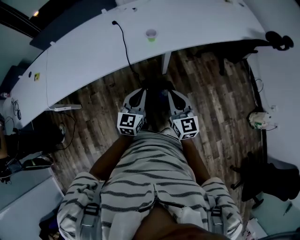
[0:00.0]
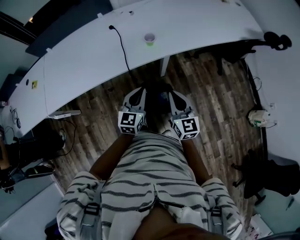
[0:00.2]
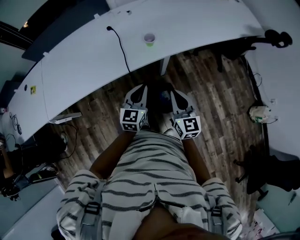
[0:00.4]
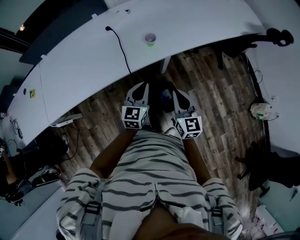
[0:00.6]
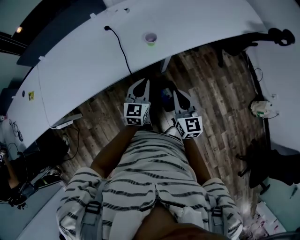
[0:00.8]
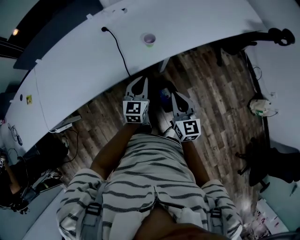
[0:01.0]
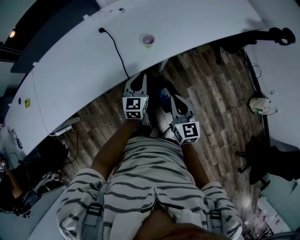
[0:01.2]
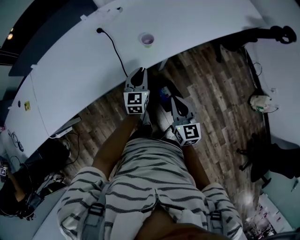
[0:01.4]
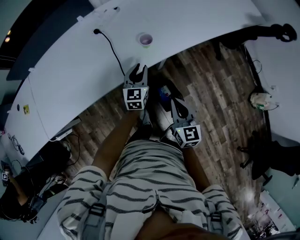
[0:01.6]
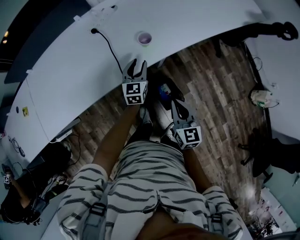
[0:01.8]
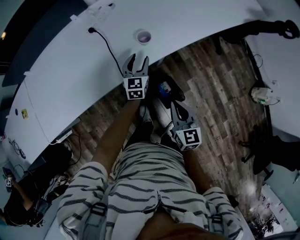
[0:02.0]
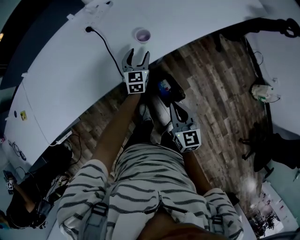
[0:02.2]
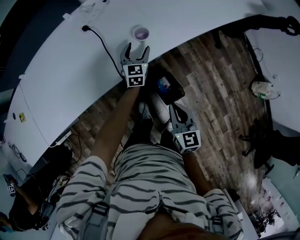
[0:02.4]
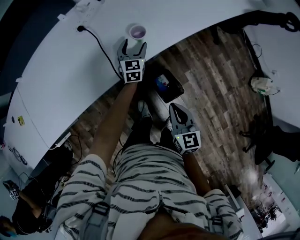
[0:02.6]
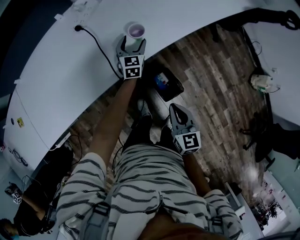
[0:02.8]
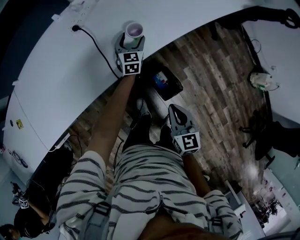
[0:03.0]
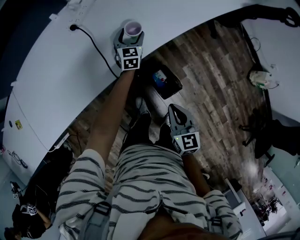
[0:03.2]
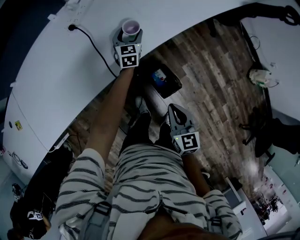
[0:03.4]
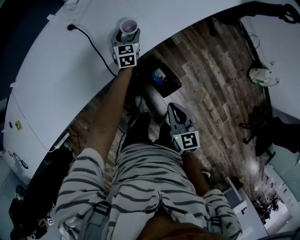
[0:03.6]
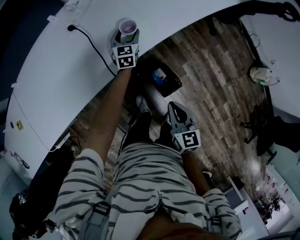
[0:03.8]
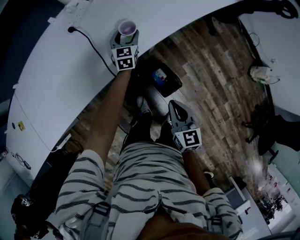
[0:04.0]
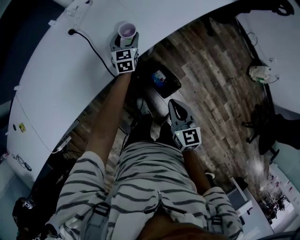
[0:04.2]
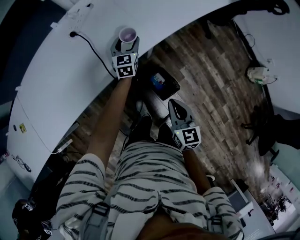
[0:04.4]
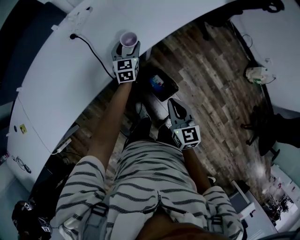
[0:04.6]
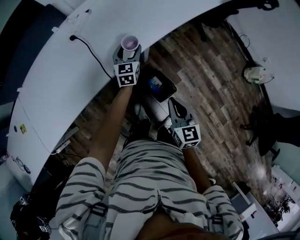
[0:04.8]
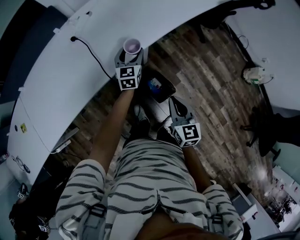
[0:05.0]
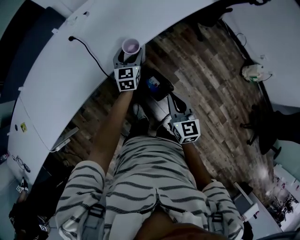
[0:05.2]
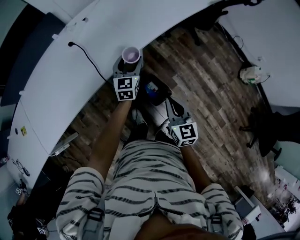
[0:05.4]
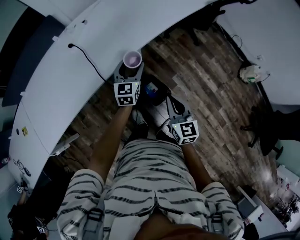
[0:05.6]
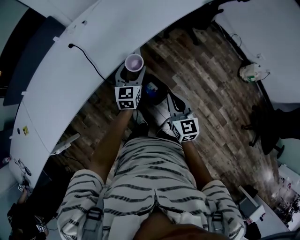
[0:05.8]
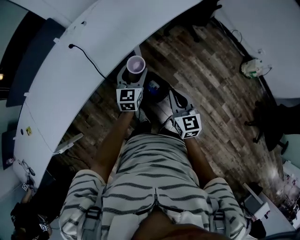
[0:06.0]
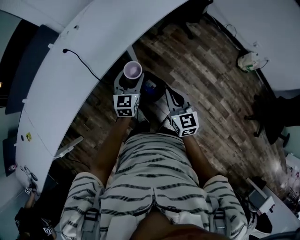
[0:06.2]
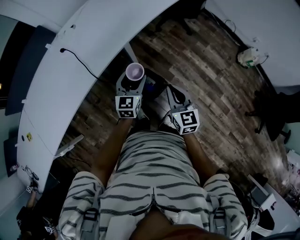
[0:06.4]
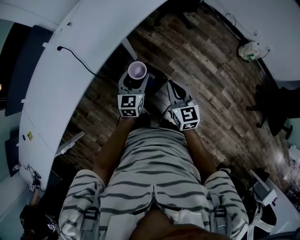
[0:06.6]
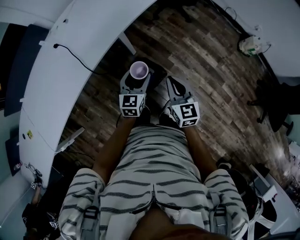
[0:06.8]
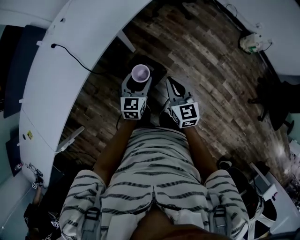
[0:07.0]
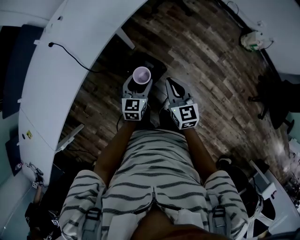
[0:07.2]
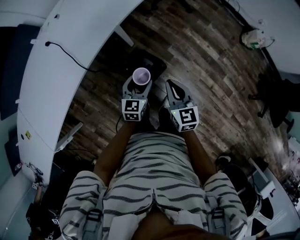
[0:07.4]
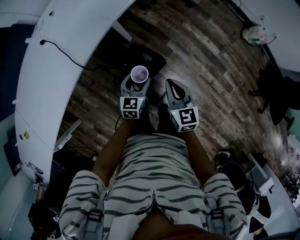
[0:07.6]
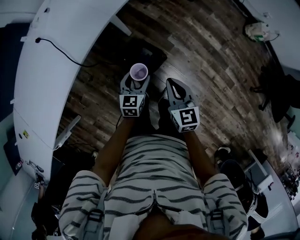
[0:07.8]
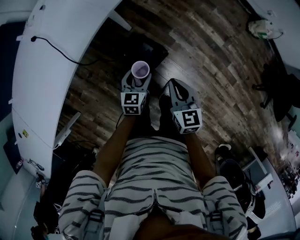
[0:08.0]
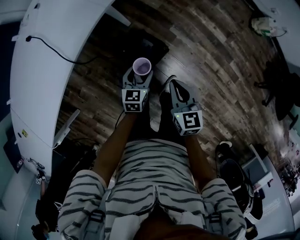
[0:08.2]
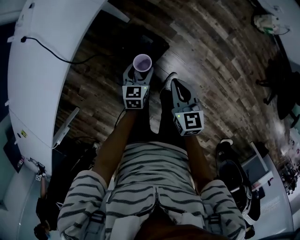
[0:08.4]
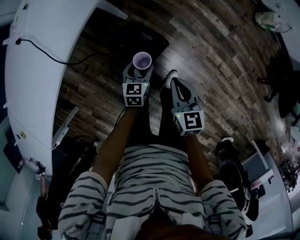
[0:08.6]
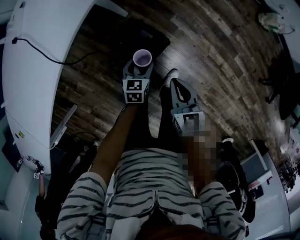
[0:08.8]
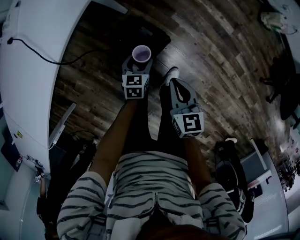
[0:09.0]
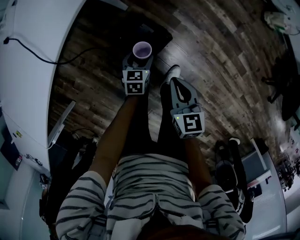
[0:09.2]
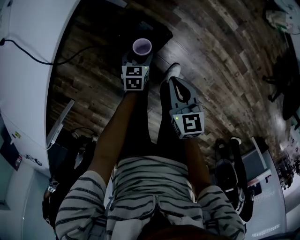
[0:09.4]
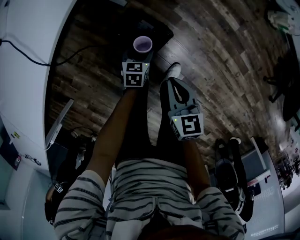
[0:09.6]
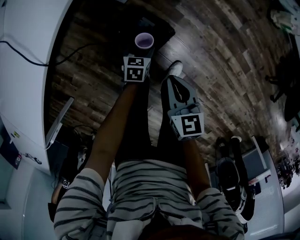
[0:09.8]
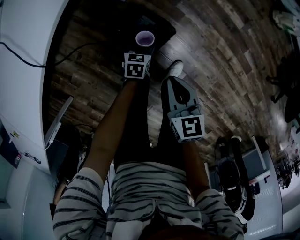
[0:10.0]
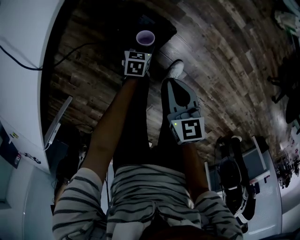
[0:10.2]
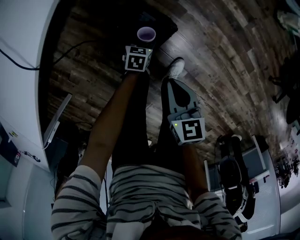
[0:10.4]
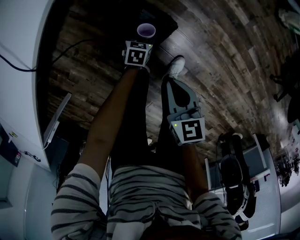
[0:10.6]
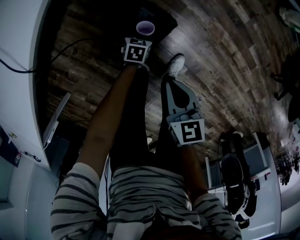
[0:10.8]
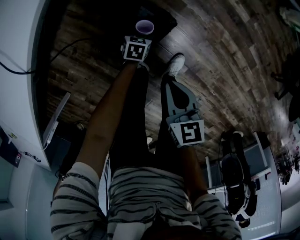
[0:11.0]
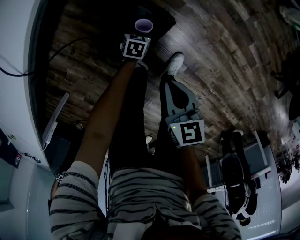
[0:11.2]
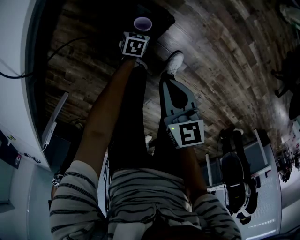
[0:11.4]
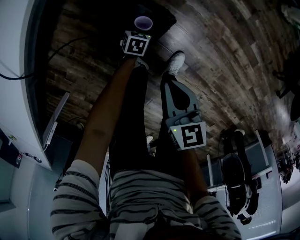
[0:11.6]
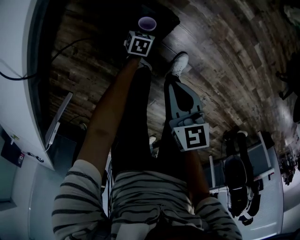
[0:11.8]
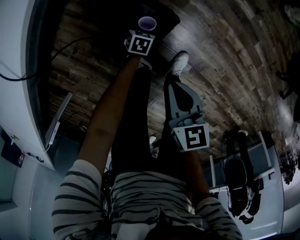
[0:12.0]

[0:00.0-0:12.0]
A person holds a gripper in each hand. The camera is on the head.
0:00.0 to 0:01.6: The right gripper moves forward and downward, about 10 cm. Meanwhile the left gripper shifts approximately 25 cm forward.
0:01.6 to 0:03.0: The left gripper is displaced forward and downward by roughly 20 cm, and opens up. Meanwhile the right gripper ends up some 5 cm from where it was.
0:03.0 to 0:04.4: The left gripper heads upward, covering approximately 5 cm.
0:04.4 to 0:06.0: The left gripper goes approximately 25 cm backward, to the right and upward; the right gripper goes some 10 cm to the right, upward and backward.
0:06.0 to 0:07.6: The left gripper is displaced downward, backward and to the right by approximately 20 cm, and turns by approximately 20 degrees, while the right gripper shifts some 10 cm downward.
0:07.6 to 0:09.0: The grippers both shift downward by about 15 cm.
0:09.0 to 0:10.4: The left gripper is displaced downward by some 15 cm, while the right gripper shifts roughly 10 cm downward.
0:10.4 to 0:12.0: The left gripper is displaced downward by roughly 10 cm.

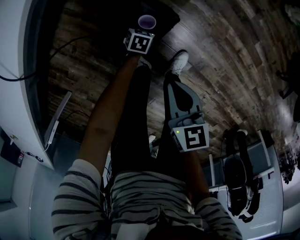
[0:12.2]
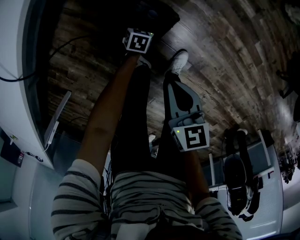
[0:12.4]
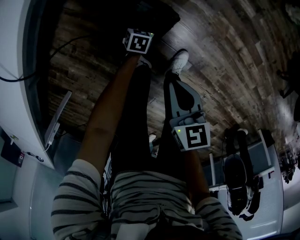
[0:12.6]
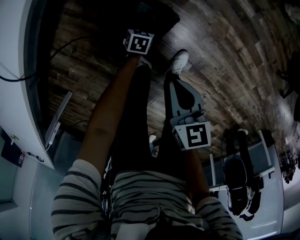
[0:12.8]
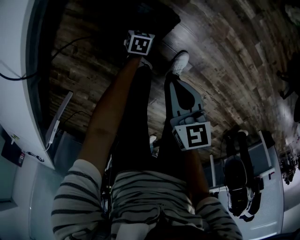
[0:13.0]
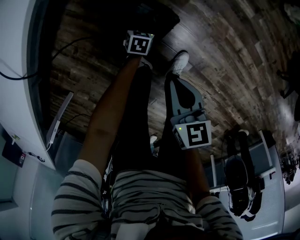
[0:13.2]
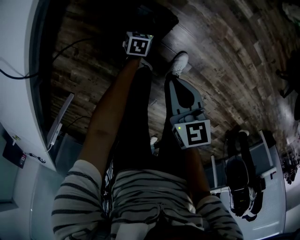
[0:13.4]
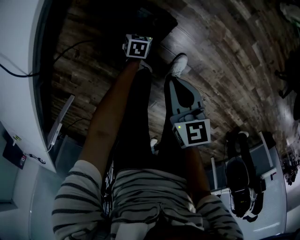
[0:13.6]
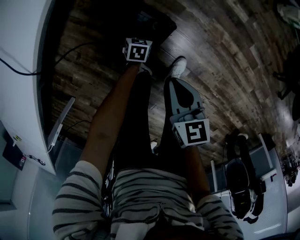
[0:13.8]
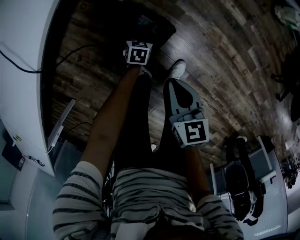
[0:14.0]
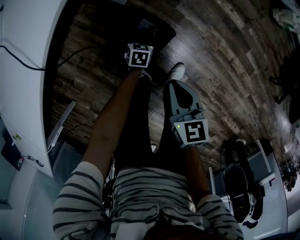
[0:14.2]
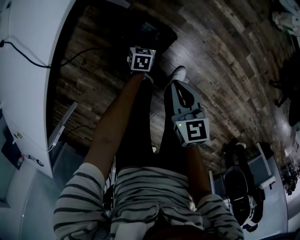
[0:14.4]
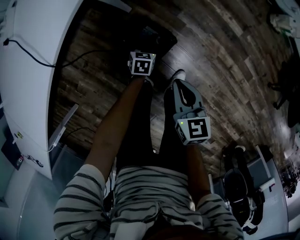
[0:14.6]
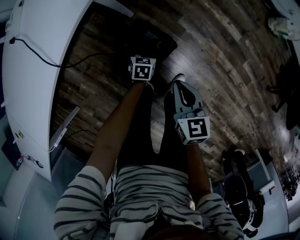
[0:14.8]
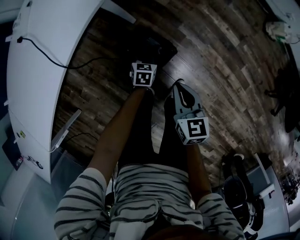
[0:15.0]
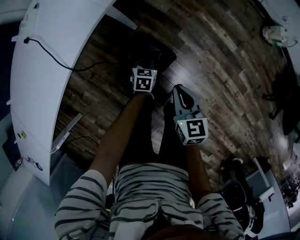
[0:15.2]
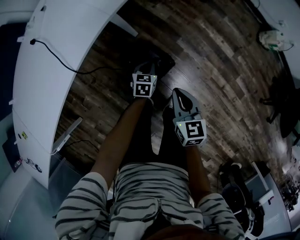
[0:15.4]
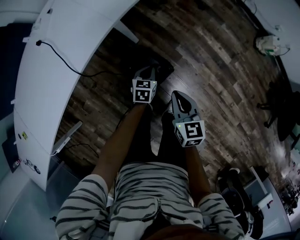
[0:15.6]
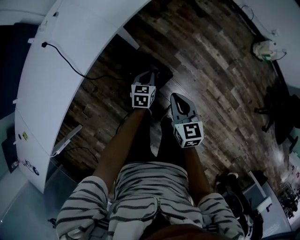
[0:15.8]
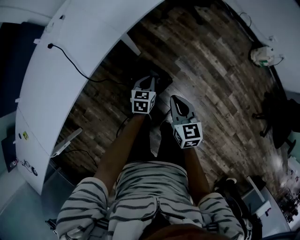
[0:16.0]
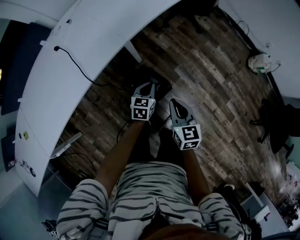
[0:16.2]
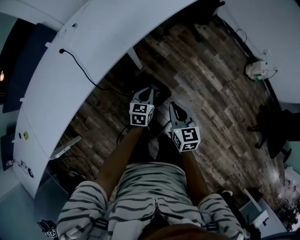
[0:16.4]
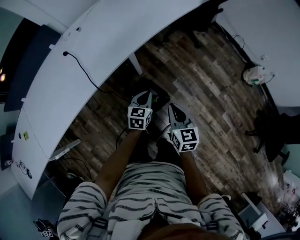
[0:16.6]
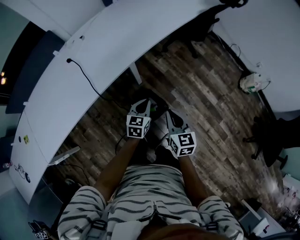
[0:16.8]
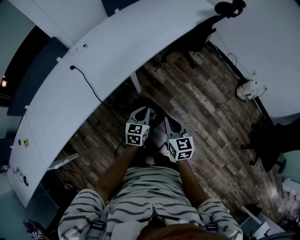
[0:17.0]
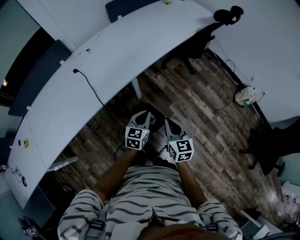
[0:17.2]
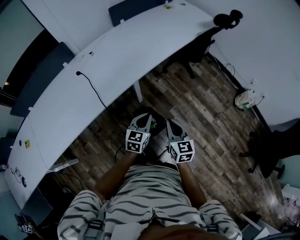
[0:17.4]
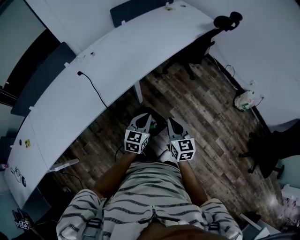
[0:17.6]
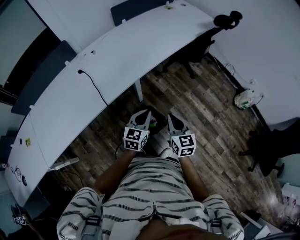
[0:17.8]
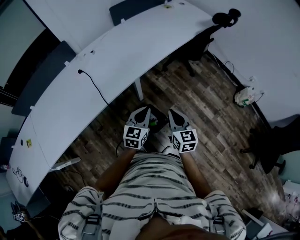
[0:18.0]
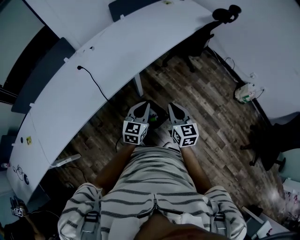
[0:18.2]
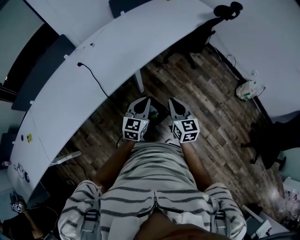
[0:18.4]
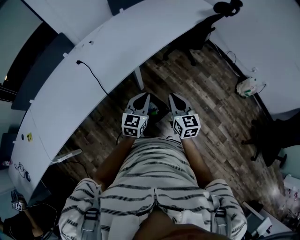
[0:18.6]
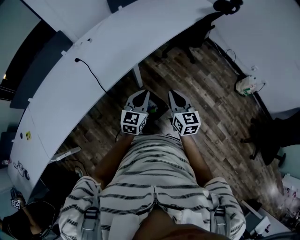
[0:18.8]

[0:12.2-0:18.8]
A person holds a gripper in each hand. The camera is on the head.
0:12.2 to 0:13.8: The left gripper is displaced upward by some 5 cm, and closes.
0:13.8 to 0:15.4: The left gripper travels upward by roughly 20 cm, and closes its fingers. The right gripper travels upward by some 10 cm.
0:15.4 to 0:17.2: The right gripper travels upward by approximately 15 cm. The left gripper is displaced upward by some 30 cm, and changes its angle by approximately 30 degrees.
0:17.2 to 0:18.8: The left gripper shifts some 10 cm upward. Meanwhile the right gripper ends up approximately 5 cm from where it was.

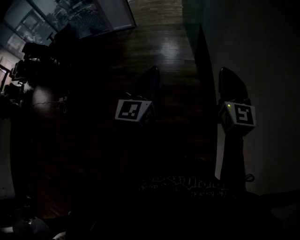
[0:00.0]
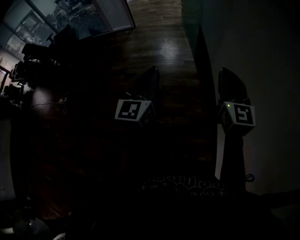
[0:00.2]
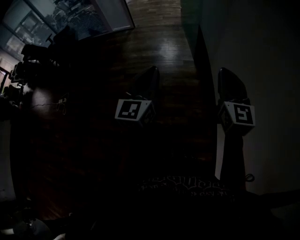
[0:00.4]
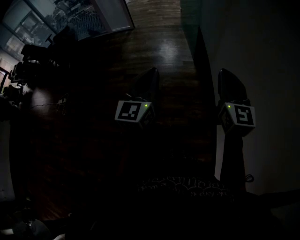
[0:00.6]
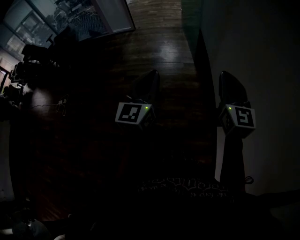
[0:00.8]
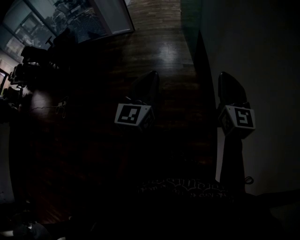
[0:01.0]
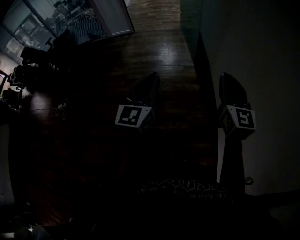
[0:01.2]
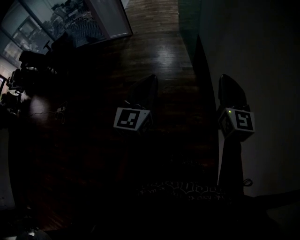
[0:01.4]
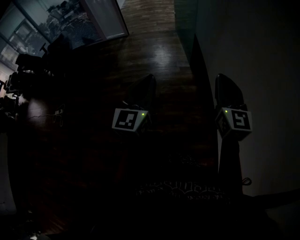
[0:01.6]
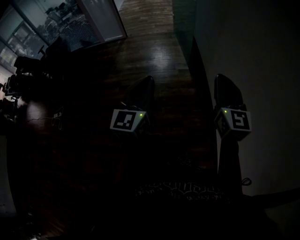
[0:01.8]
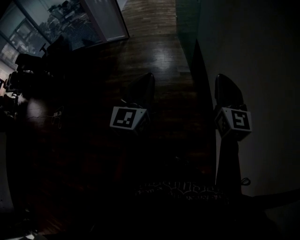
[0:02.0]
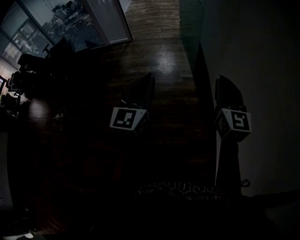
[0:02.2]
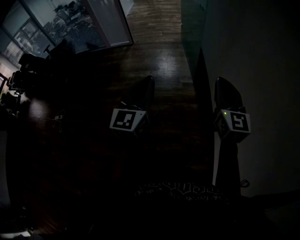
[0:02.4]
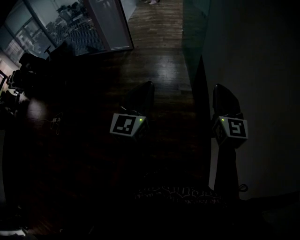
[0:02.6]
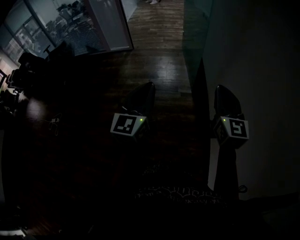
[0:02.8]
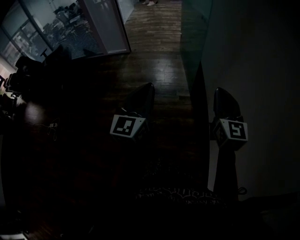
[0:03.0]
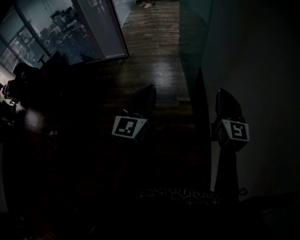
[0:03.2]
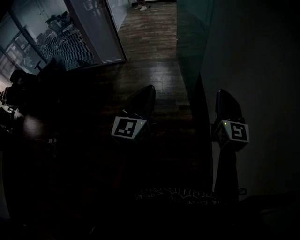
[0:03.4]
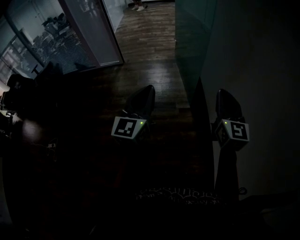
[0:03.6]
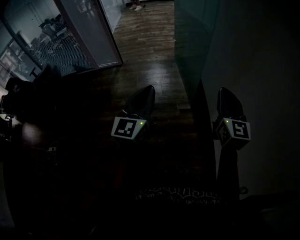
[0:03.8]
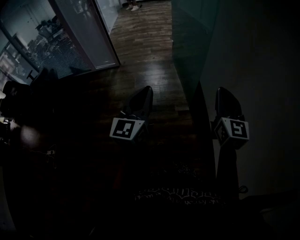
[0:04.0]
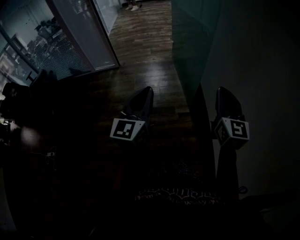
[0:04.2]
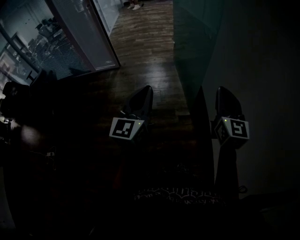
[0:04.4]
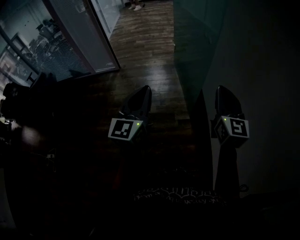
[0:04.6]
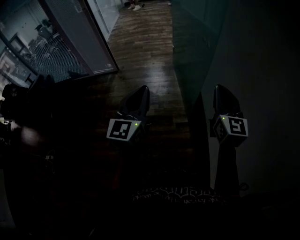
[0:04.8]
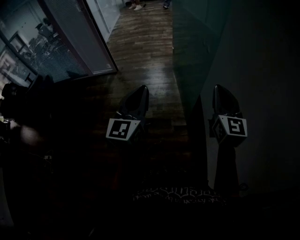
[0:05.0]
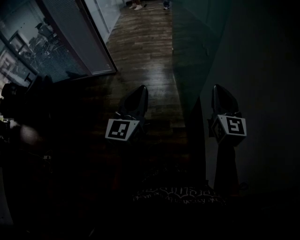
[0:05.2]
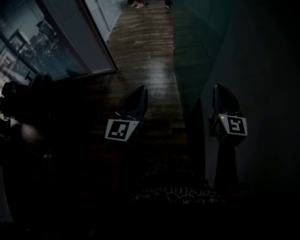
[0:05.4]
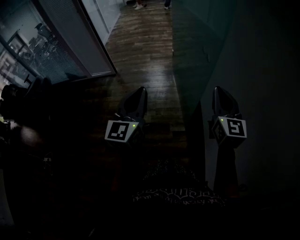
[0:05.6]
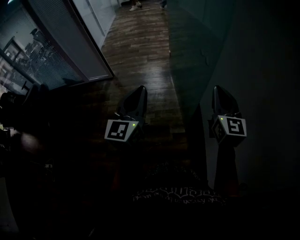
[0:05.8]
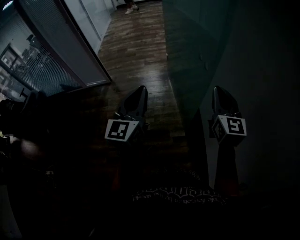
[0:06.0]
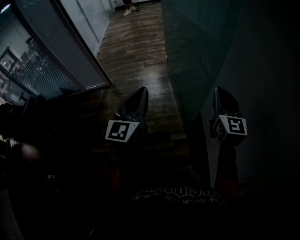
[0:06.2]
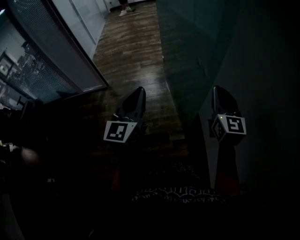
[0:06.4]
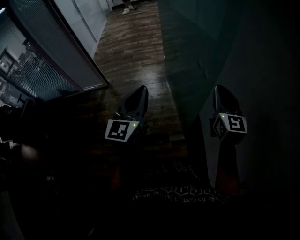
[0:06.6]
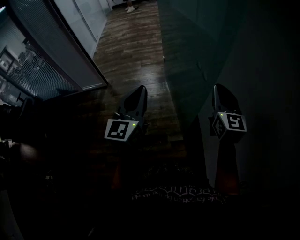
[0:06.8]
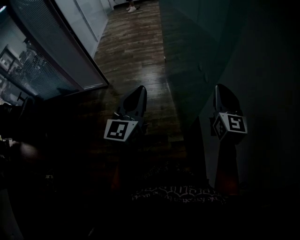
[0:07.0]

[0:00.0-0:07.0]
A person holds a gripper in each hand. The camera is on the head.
0:00.0 to 0:01.4: There are only small adjustments of the grippers.
0:01.4 to 0:02.8: Both grippers travel together forward, approximately 25 cm.
0:02.8 to 0:04.2: Both grippers move forward, roughly 25 cm.
0:04.2 to 0:05.6: The two grippers go approximately 25 cm forward.
0:05.6 to 0:07.0: Both grippers travel together forward, some 15 cm.
